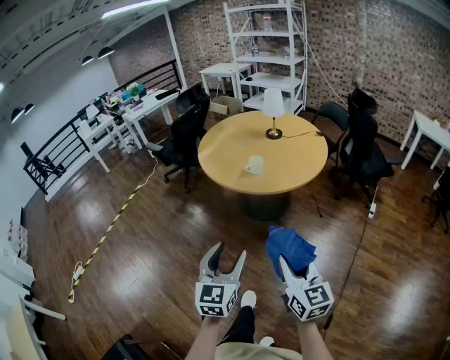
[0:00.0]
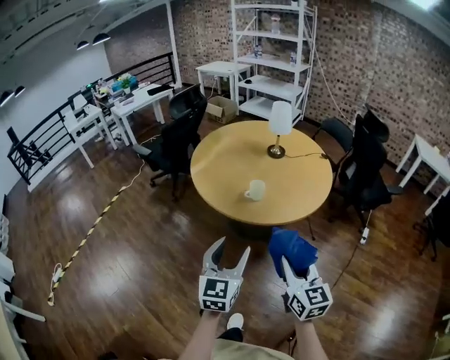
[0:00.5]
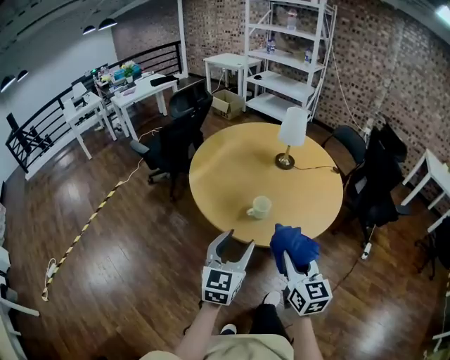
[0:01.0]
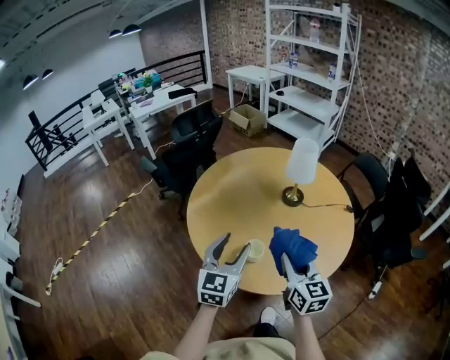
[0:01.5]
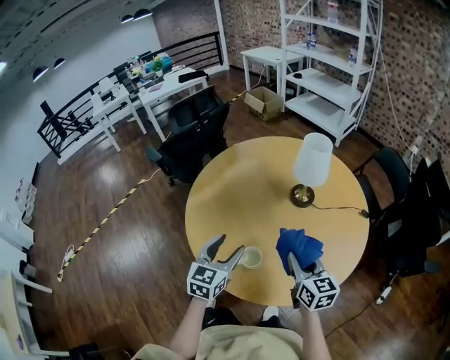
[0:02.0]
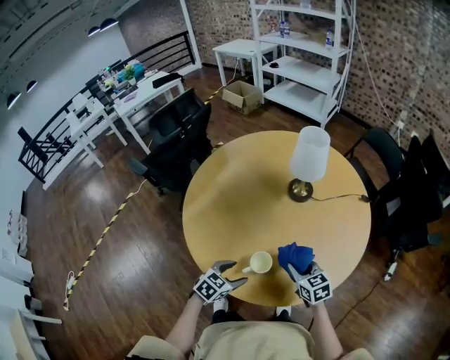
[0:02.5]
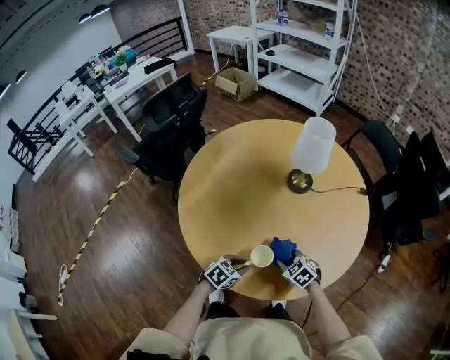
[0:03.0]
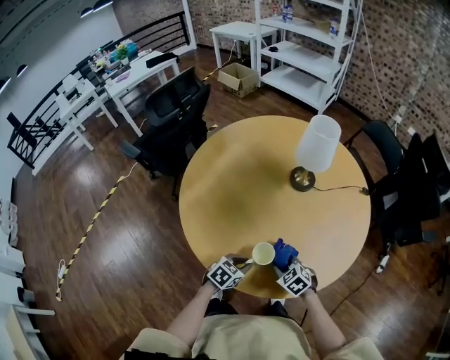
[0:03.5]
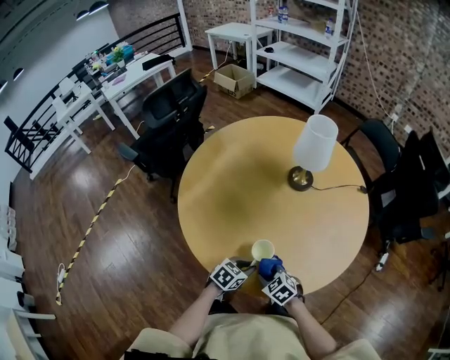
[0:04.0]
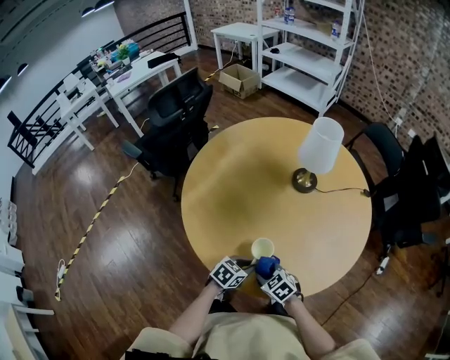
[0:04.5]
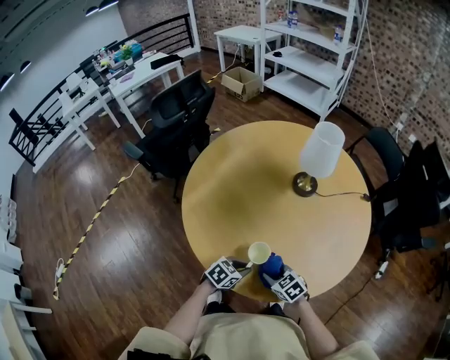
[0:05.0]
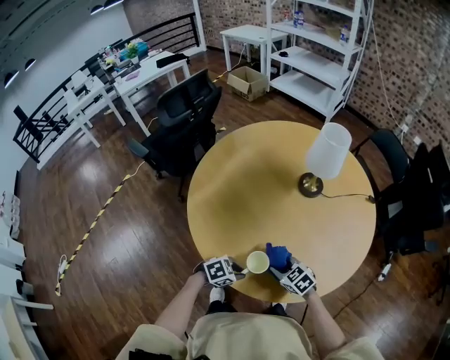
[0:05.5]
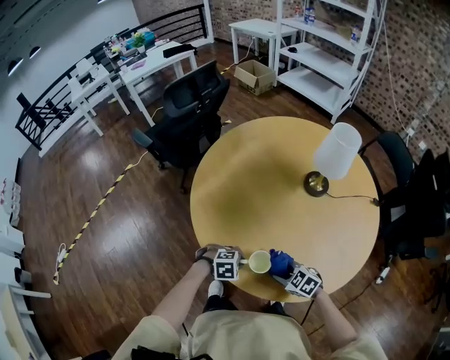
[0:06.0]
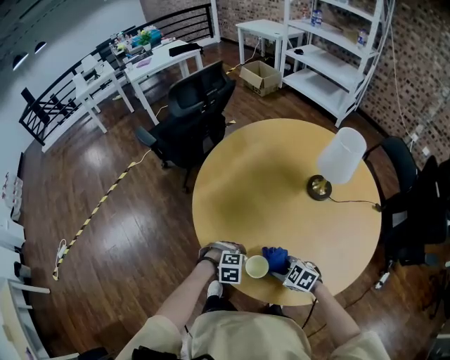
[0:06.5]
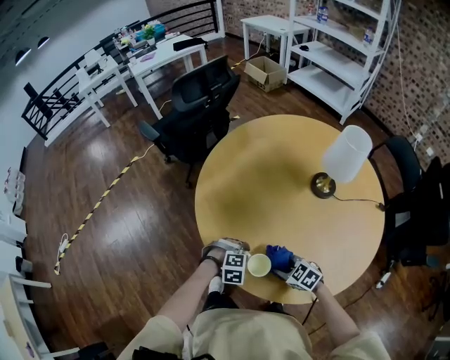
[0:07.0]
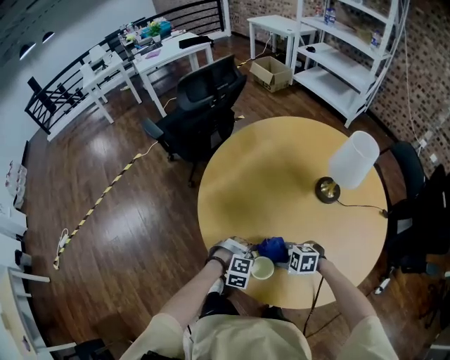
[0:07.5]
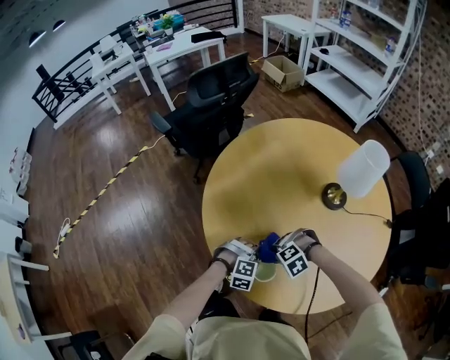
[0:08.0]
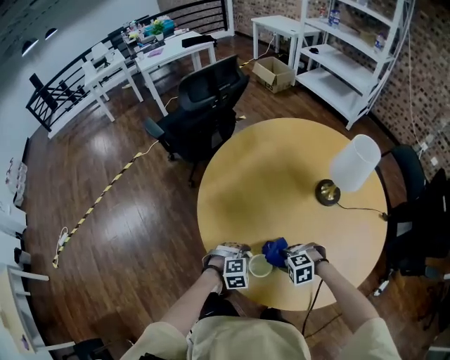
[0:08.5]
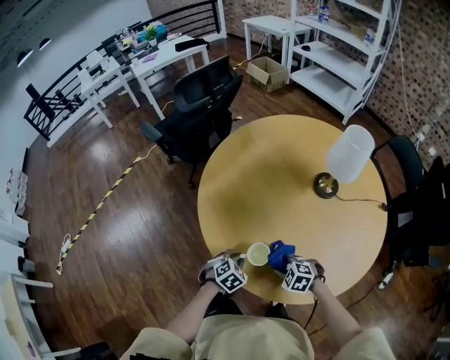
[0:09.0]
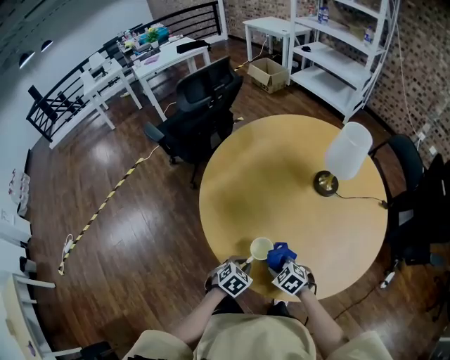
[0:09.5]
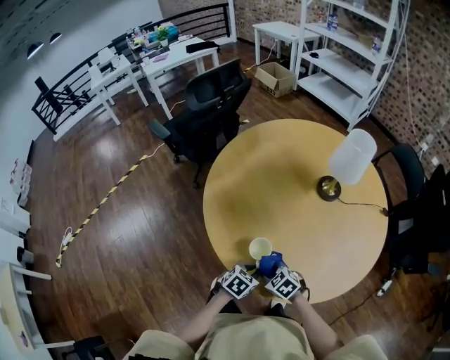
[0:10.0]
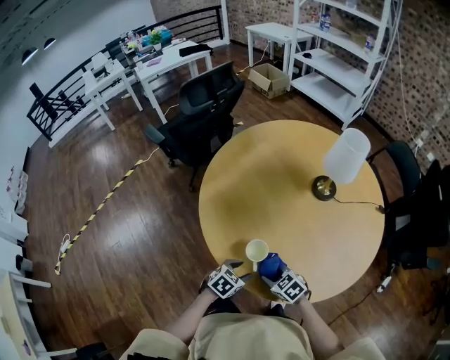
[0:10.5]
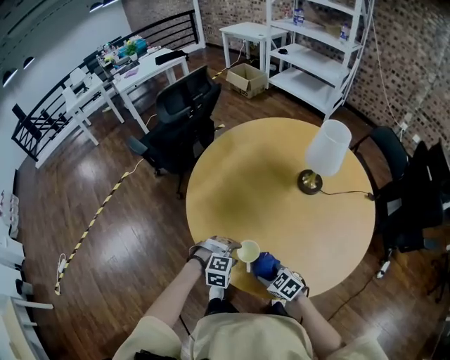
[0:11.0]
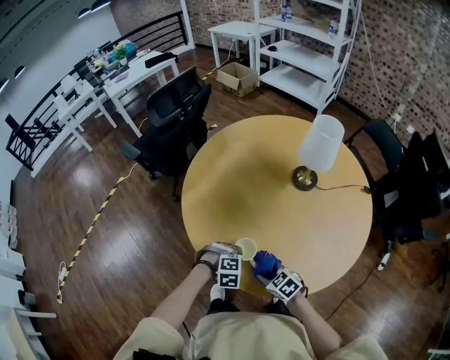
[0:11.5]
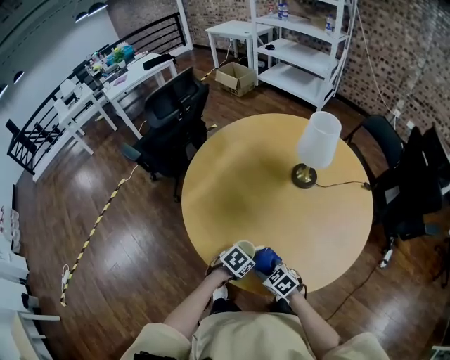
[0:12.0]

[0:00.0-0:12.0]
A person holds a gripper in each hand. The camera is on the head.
0:00.0 to 0:02.0: The two grippers travel together, forward, approximately 60 cm.
0:02.0 to 0:04.0: The right gripper shifts some 25 cm downward and to the left, and tips its fingers downward by roughly 40 degrees. The left gripper shifts about 20 cm downward, rotates some 50 degrees, and closes.
0:04.0 to 0:06.0: The left gripper ends up roughly 5 cm from where it was, and turns by roughly 50 degrees.
0:06.0 to 0:08.0: The left gripper shifts by approximately 5 cm, and changes its angle by roughly 30 degrees; the right gripper shifts by about 10 cm, and rolls counterclockwise, seen from behind, by about 60 degrees.
0:08.0 to 0:10.0: The left gripper changes place by about 10 cm, and rotates around the line of its fingers by about 70 degrees, counterclockwise from behind; the right gripper ends up approximately 10 cm from where it was, and rolls clockwise, seen from behind, by about 70 degrees.
0:10.0 to 0:12.0: The left gripper rotates roughly 20 degrees, and opens, then closes again.

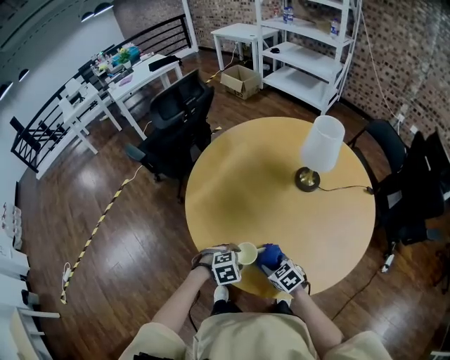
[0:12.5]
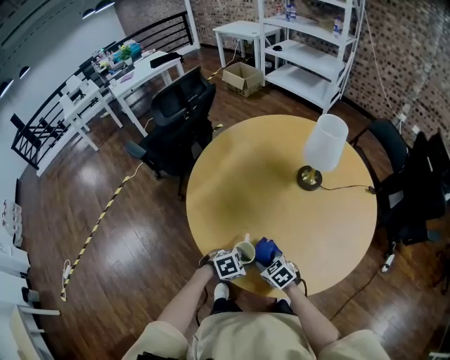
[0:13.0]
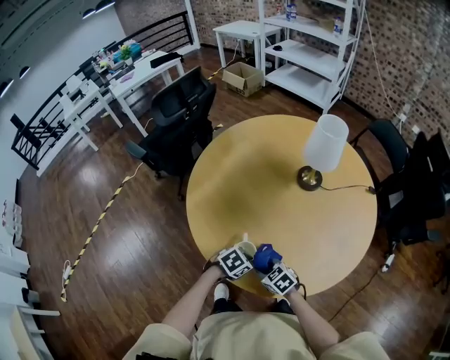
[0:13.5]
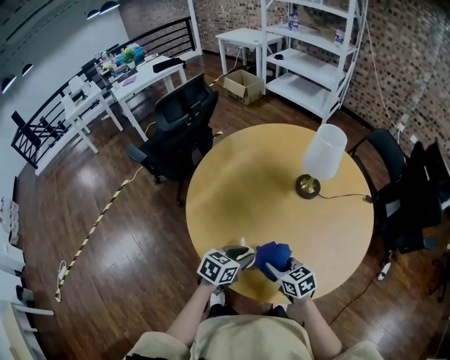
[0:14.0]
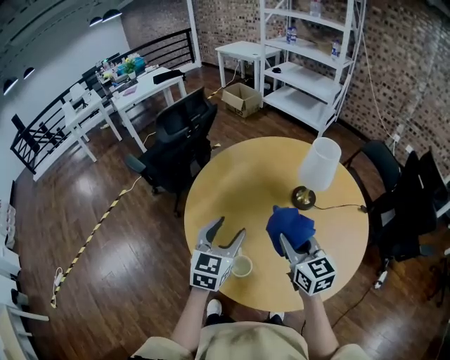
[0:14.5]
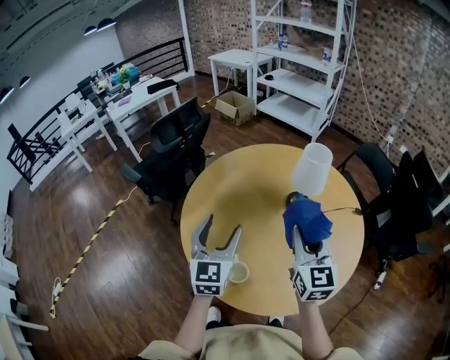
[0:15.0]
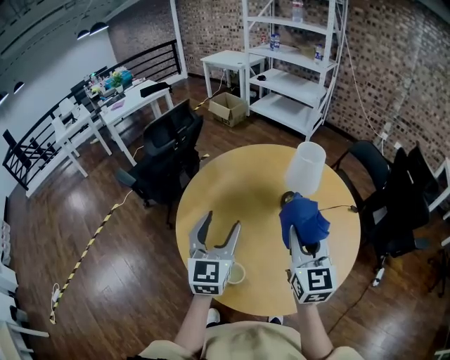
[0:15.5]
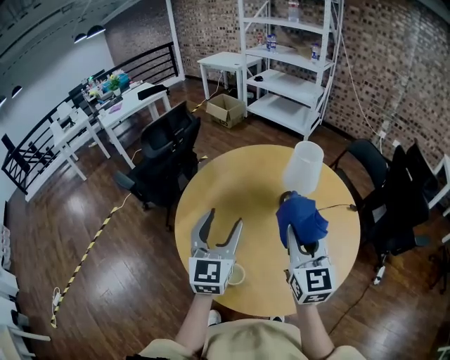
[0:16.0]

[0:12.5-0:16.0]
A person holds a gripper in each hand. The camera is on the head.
0:12.5 to 0:14.5: The two grippers go approximately 25 cm upward. The left gripper tips its fingers upward by about 50 degrees, and closes, then opens again. Meanwhile the right gripper tips its fingers upward by roughly 40 degrees.
0:14.5 to 0:16.0: Both grippers move upward, about 10 cm. The right gripper swivels approximately 20 degrees.

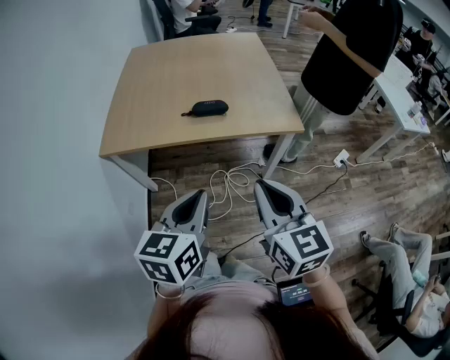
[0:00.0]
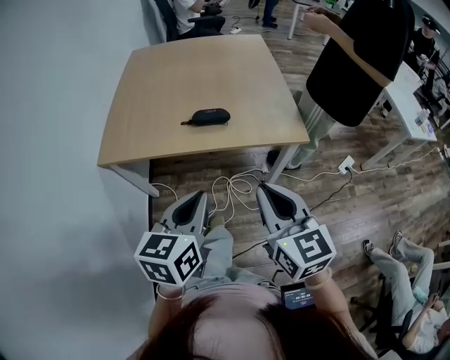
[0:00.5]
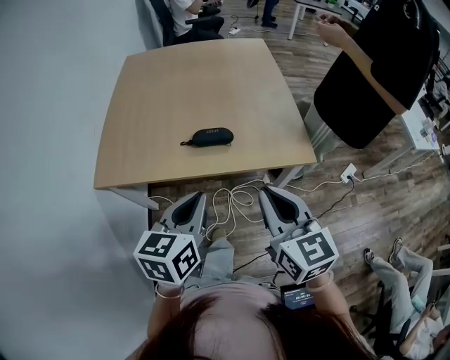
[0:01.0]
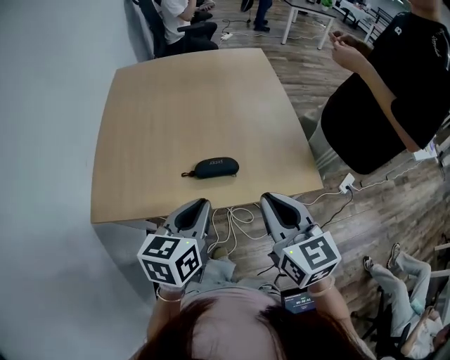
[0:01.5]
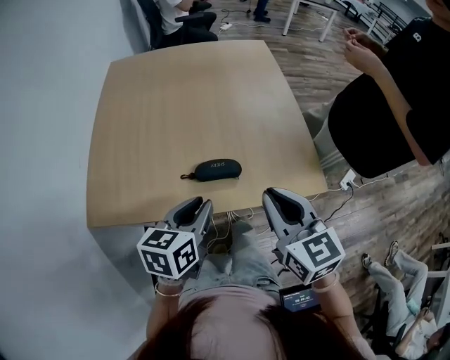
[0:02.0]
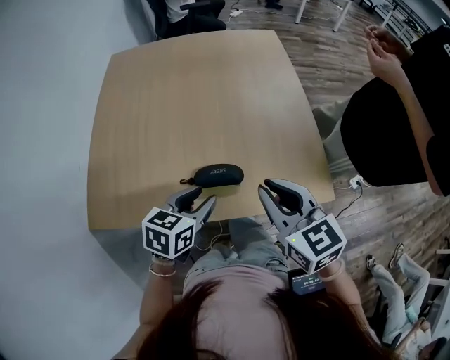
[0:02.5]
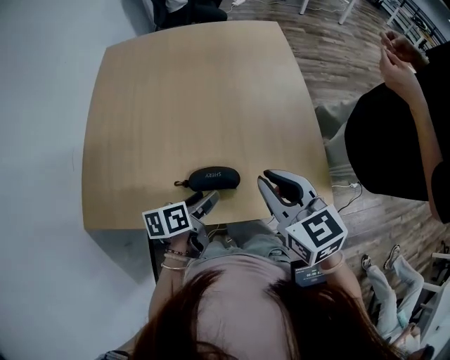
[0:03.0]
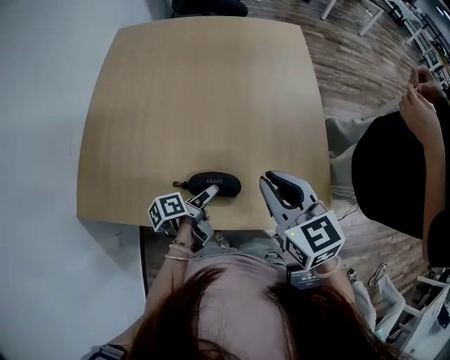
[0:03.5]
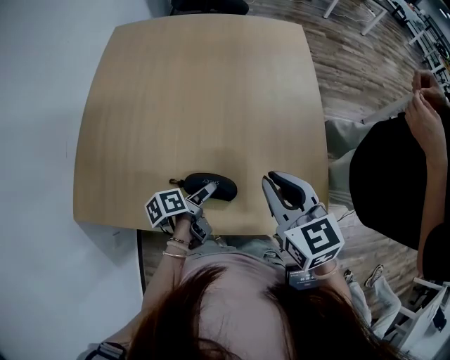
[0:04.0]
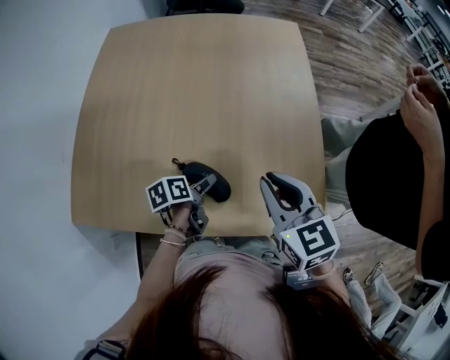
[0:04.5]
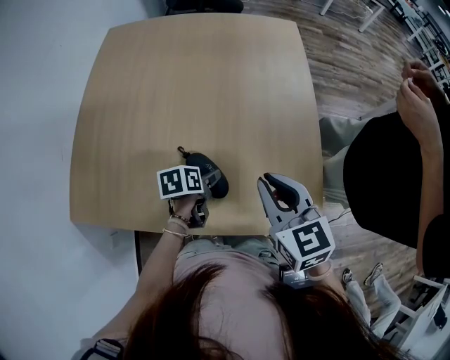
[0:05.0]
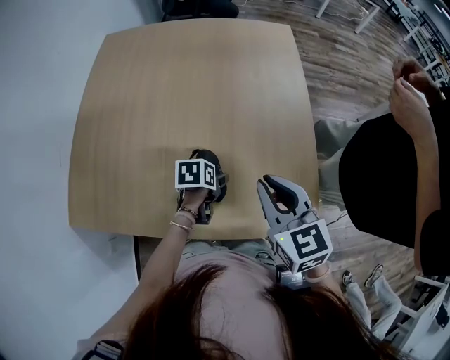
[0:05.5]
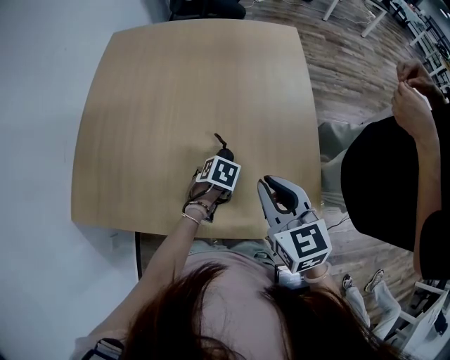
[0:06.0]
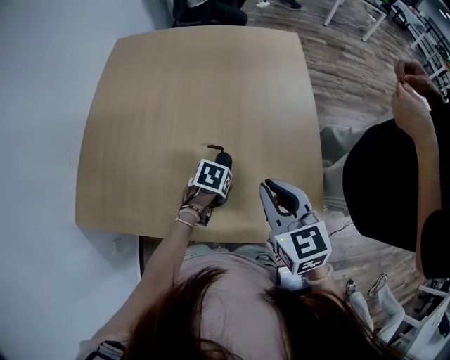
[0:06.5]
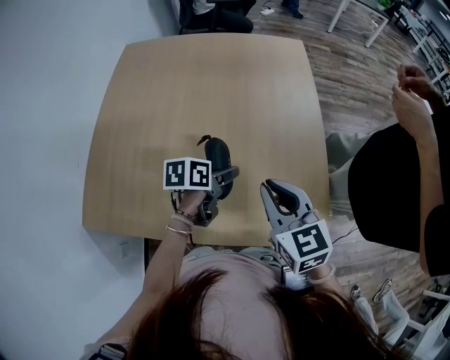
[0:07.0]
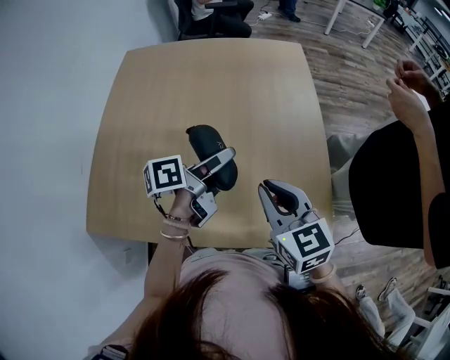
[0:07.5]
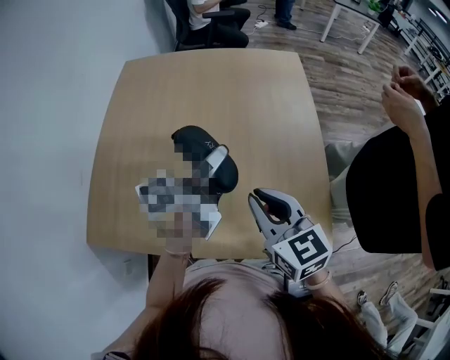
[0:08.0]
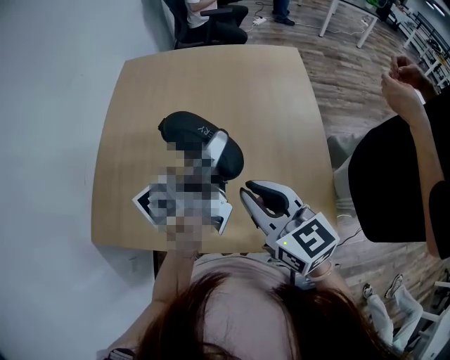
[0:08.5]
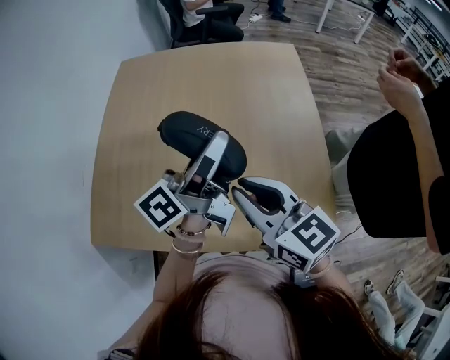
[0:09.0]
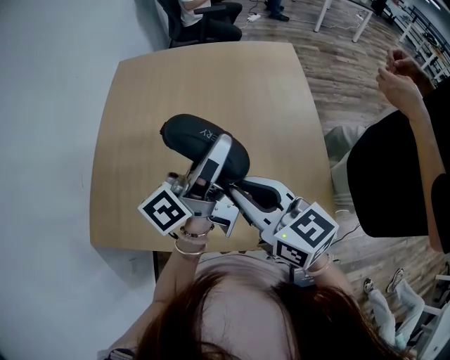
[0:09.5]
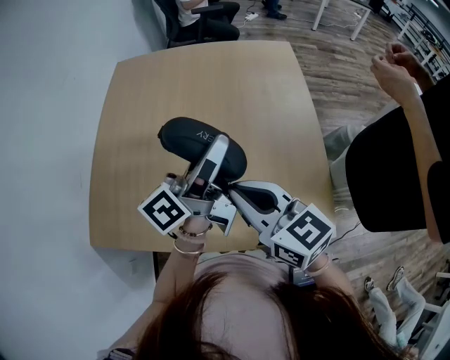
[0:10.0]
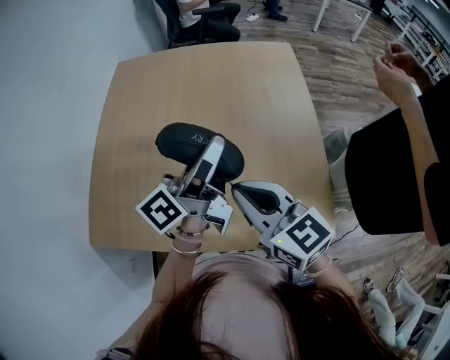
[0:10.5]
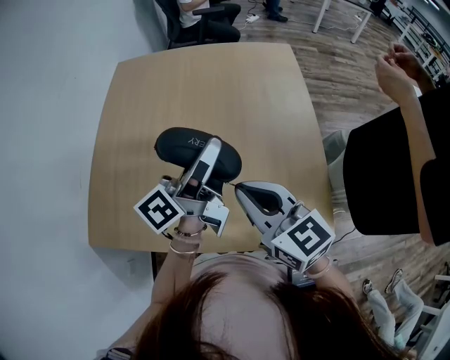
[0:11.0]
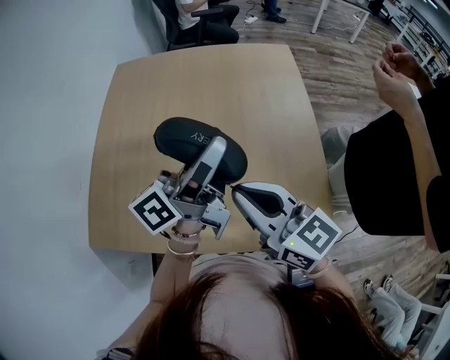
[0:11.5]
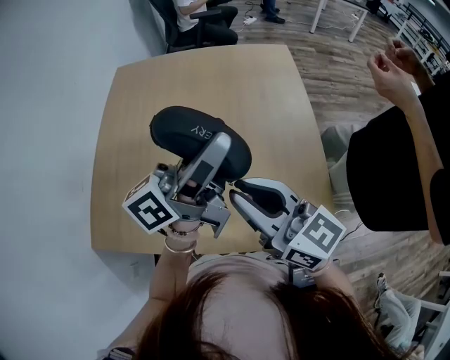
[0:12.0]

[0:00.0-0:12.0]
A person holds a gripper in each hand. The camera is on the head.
0:00.0 to 0:02.0: Both grippers travel together forward, about 30 cm.
0:02.0 to 0:04.0: The left gripper shifts some 25 cm downward and forward, twists about 60 degrees counterclockwise, seen from behind, and opens up. The right gripper is displaced forward by roughly 20 cm.
0:04.0 to 0:06.0: The left gripper ends up some 10 cm from where it was, and twists approximately 60 degrees clockwise, seen from behind.
0:06.0 to 0:08.0: The left gripper goes some 30 cm upward, and tilts its fingers roughly 80 degrees upward, while the right gripper moves about 5 cm.
0:08.0 to 0:10.0: The right gripper is displaced to the left by approximately 5 cm, while the left gripper moves upward, roughly 5 cm.
0:10.0 to 0:12.0: The left gripper travels upward by roughly 5 cm.
